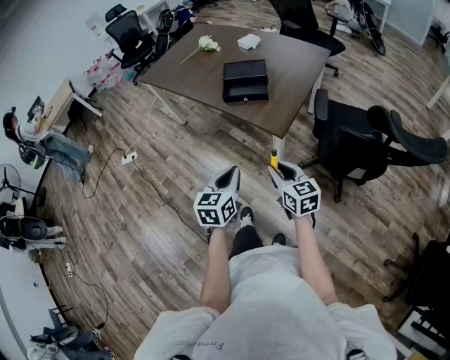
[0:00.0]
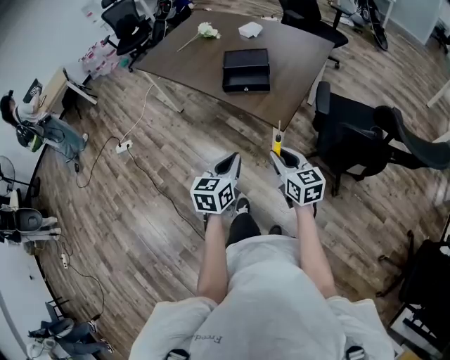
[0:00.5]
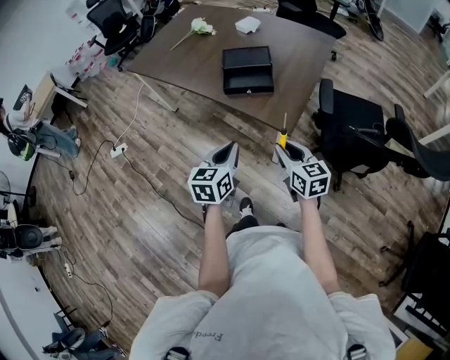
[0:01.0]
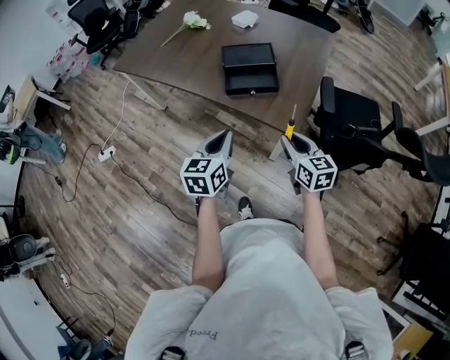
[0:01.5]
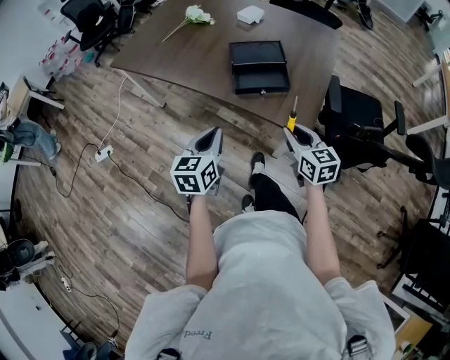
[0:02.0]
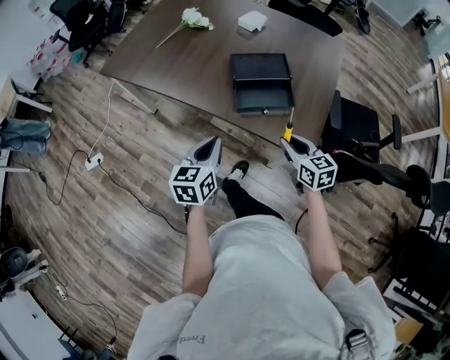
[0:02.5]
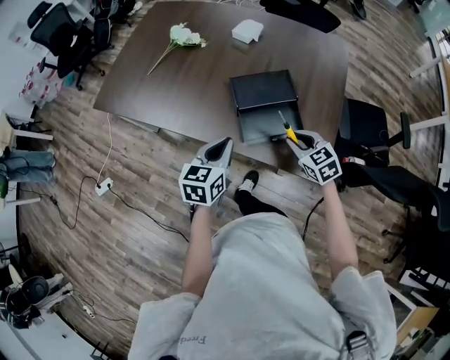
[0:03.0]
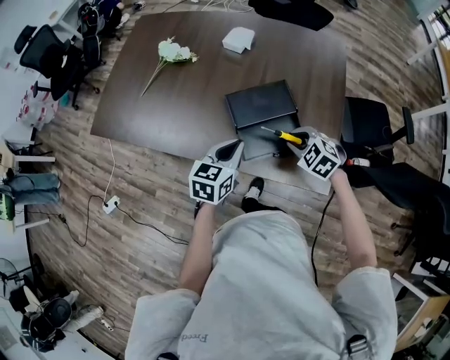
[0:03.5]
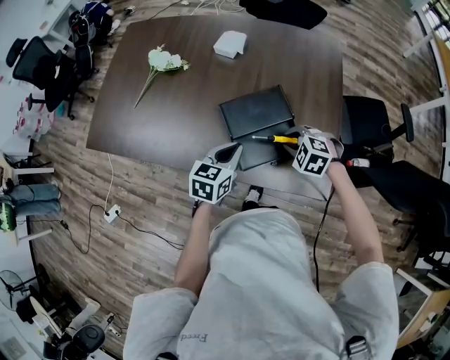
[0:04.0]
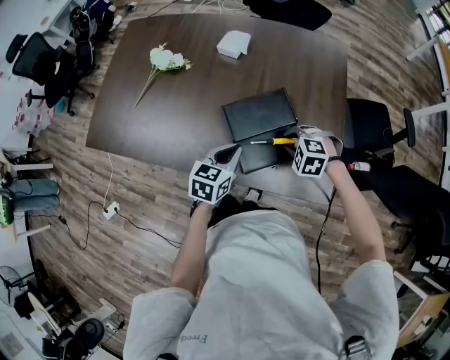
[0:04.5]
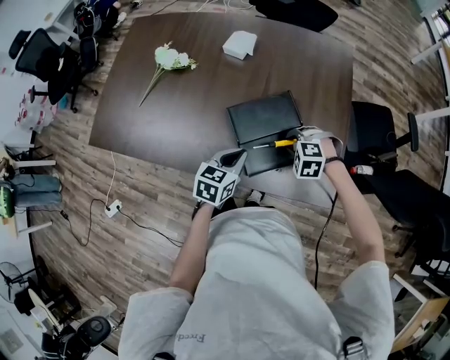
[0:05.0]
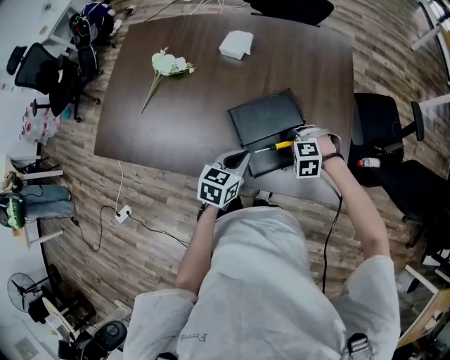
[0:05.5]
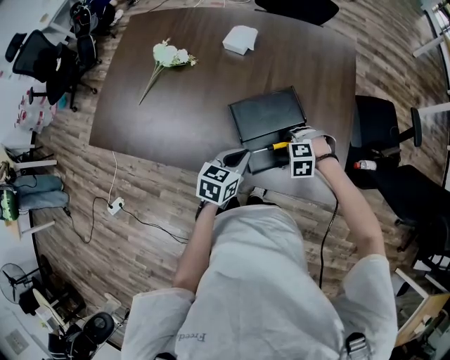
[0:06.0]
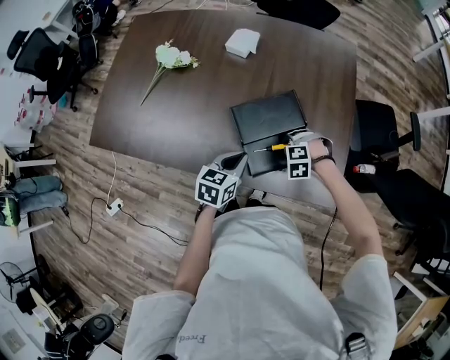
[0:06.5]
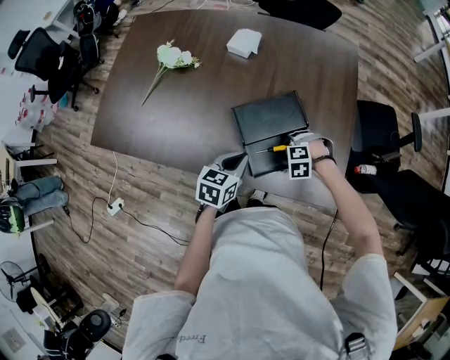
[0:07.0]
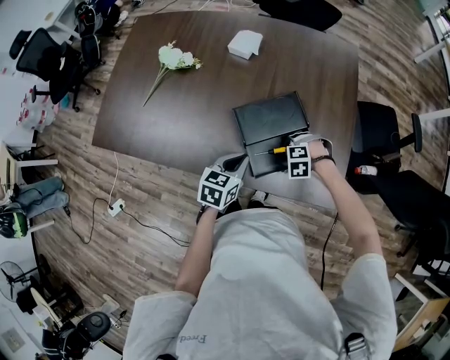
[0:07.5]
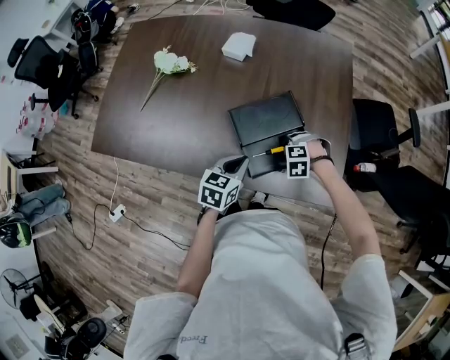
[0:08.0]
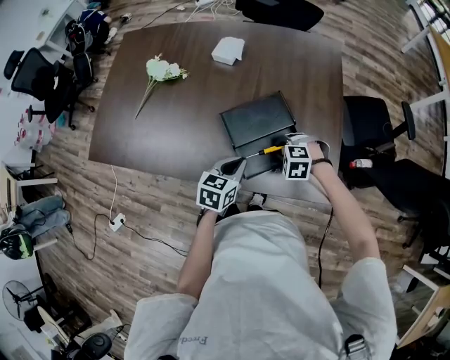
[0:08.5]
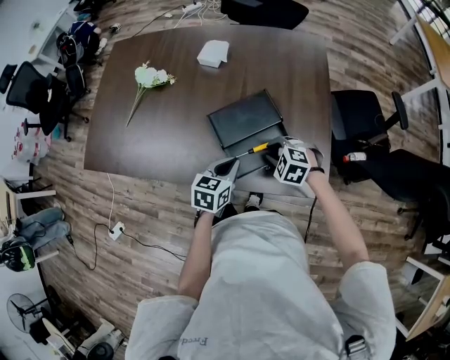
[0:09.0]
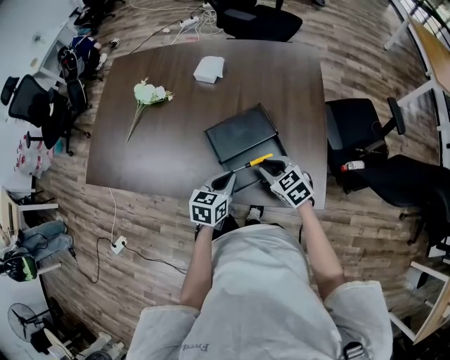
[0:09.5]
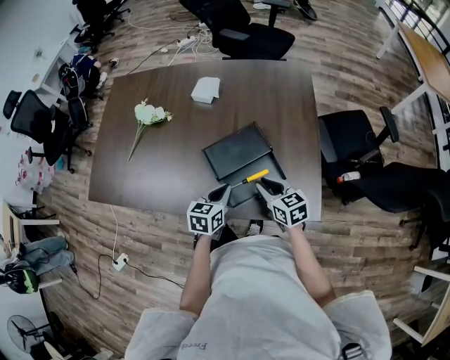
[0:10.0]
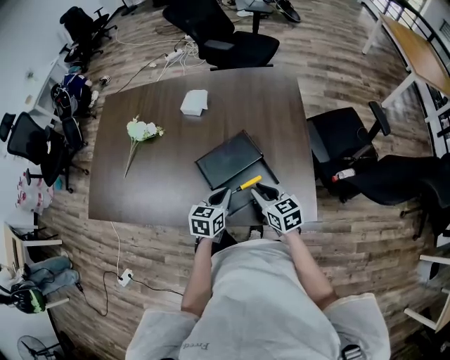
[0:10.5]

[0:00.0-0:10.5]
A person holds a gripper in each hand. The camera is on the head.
0:00.0 to 0:02.0: The right gripper shifts approximately 20 cm forward, while the left gripper heads forward and to the left, covering some 30 cm.
0:02.0 to 0:04.0: The right gripper heads forward and downward, covering about 30 cm, and points its fingers roughly 40 degrees further downward. Meanwhile the left gripper moves forward, roughly 30 cm, and rotates some 30 degrees.
0:04.0 to 0:06.5: The right gripper goes approximately 10 cm downward, and rotates about 30 degrees.
0:06.5 to 0:08.5: There are only small adjustments of the grippers.
0:08.5 to 0:10.5: The right gripper is displaced upward by some 10 cm, and rolls clockwise, seen from behind, by about 70 degrees.

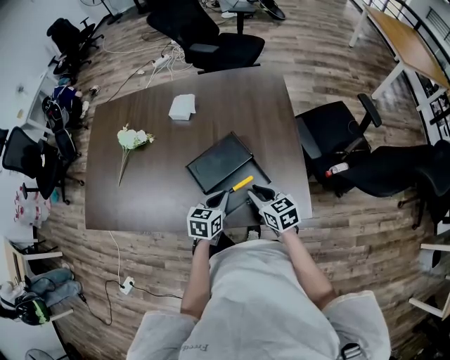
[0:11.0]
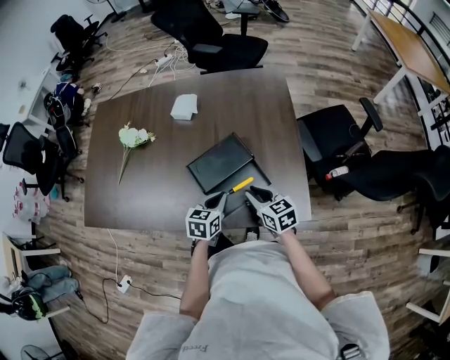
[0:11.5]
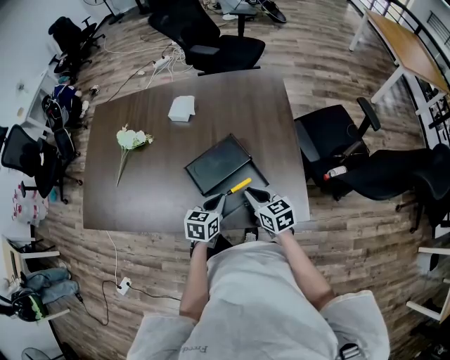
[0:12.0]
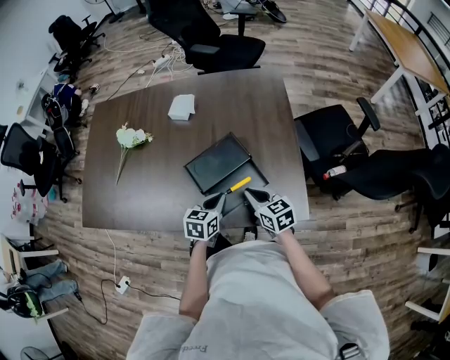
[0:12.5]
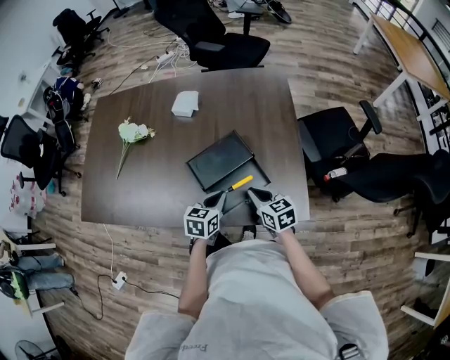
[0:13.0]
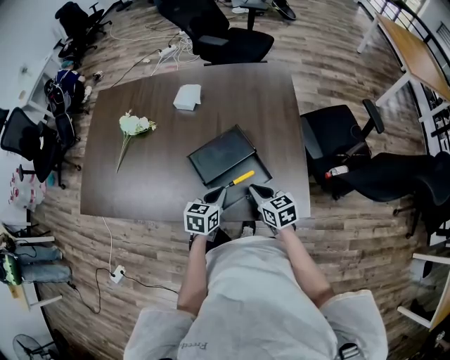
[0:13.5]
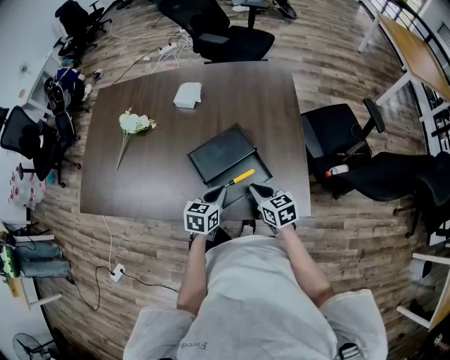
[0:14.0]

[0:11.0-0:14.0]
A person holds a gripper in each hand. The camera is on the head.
0:11.0 to 0:12.5: Both grippers stay about where they are.
0:12.5 to 0:14.0: The grippers stay close to where they were, moving slightly.

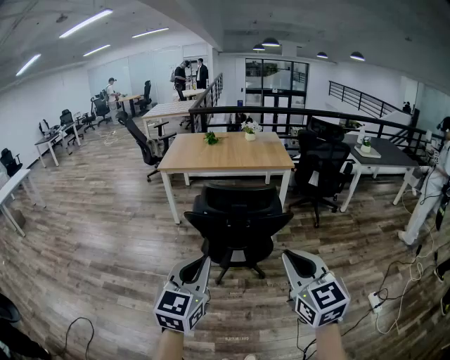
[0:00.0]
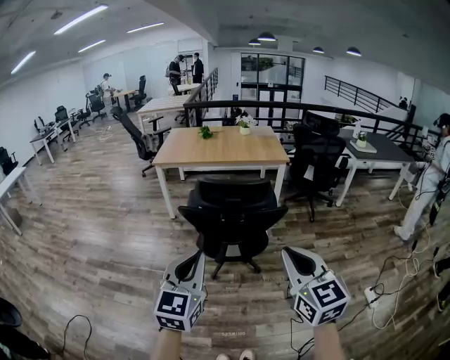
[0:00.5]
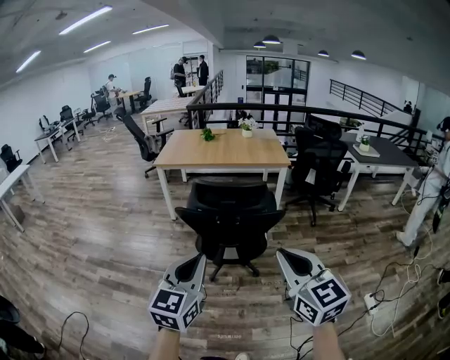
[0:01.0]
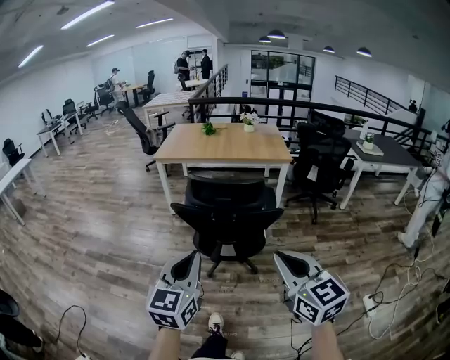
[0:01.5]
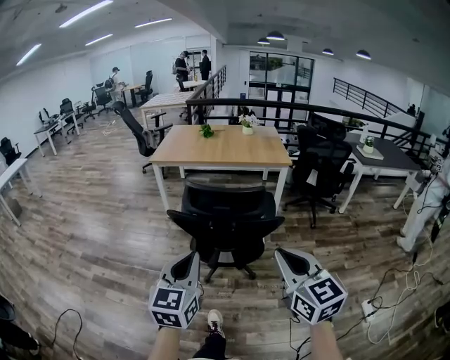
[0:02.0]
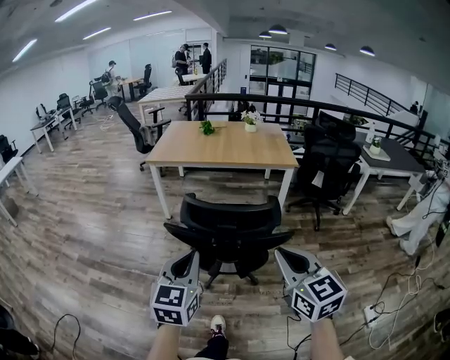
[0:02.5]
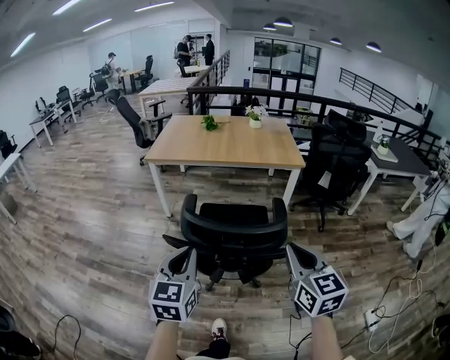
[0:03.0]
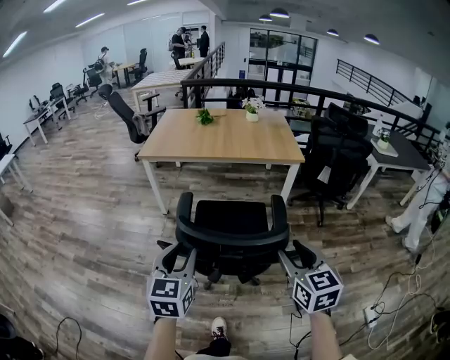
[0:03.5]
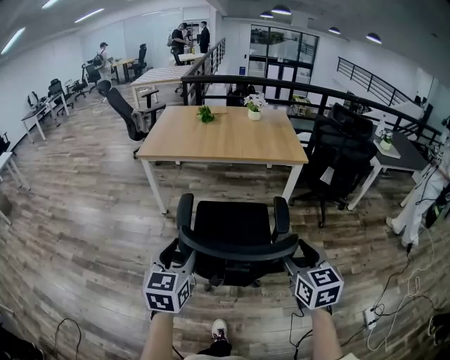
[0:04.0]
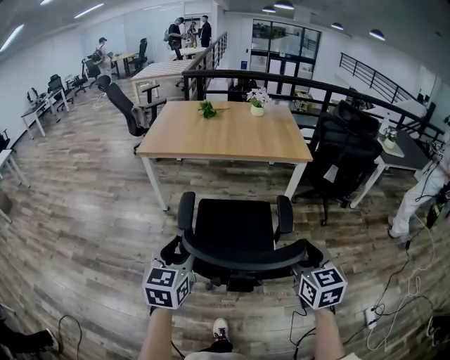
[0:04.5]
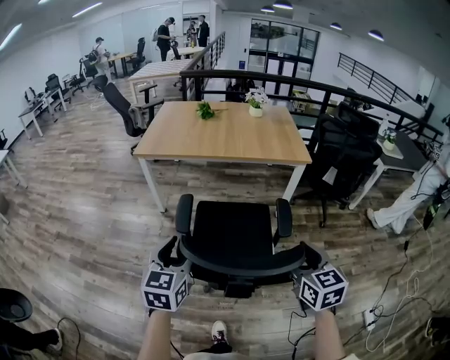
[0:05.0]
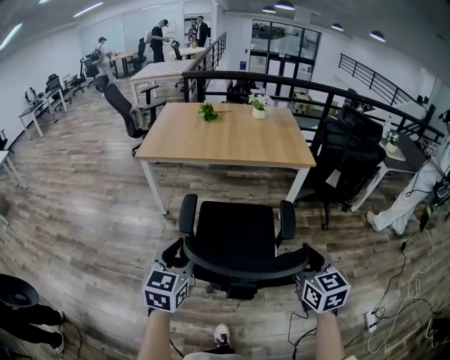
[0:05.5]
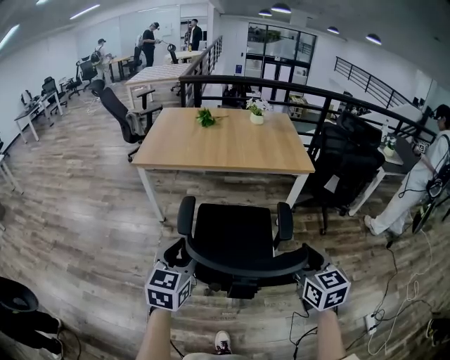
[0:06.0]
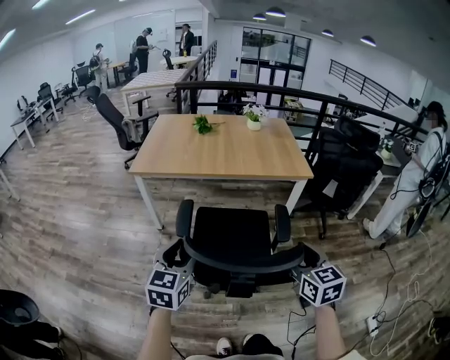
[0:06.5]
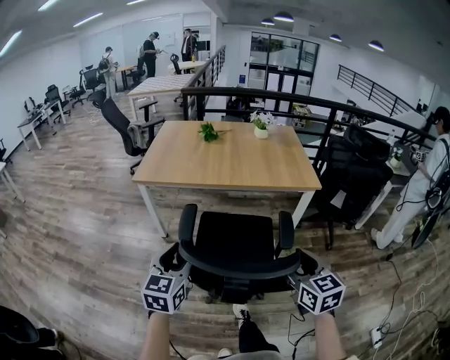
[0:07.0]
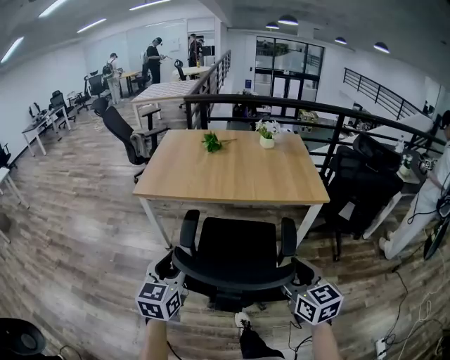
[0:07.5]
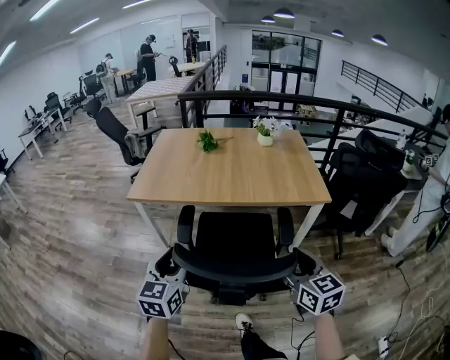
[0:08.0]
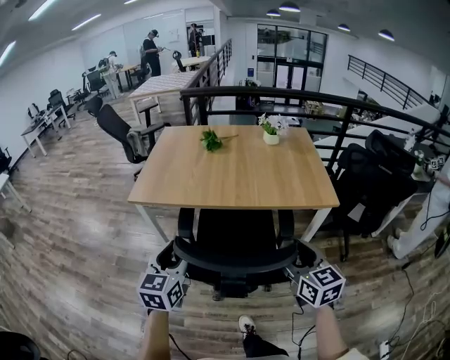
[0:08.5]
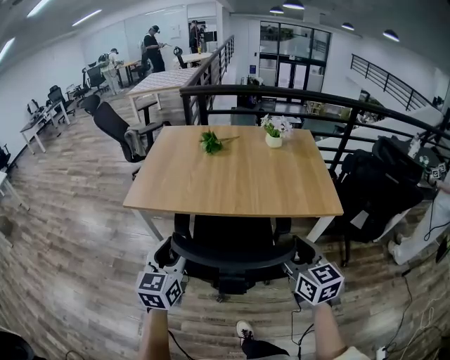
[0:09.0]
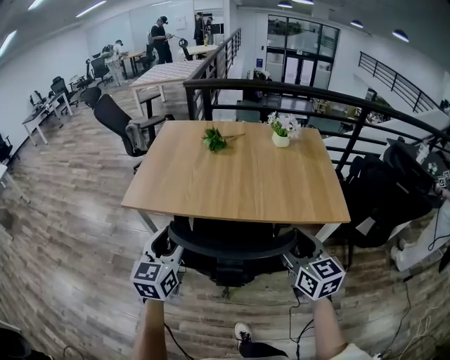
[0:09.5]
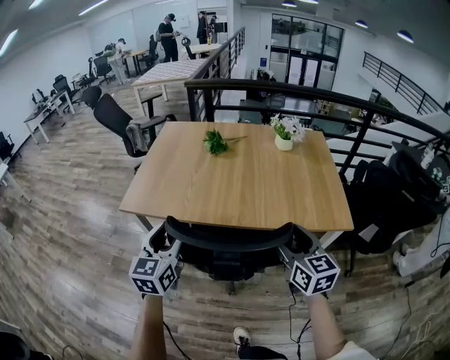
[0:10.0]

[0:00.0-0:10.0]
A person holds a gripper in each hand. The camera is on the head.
0:00.0 to 0:02.0: Both grippers move forward, about 5 cm.
0:02.0 to 0:04.0: The two grippers go approximately 30 cm forward. The left gripper opens its fingers. Meanwhile the right gripper opens up.
0:04.0 to 0:06.0: Both grippers travel together forward, about 10 cm.
0:06.0 to 0:08.0: The two grippers go some 20 cm forward.
0:08.0 to 0:10.0: Both grippers travel together forward, approximately 25 cm.

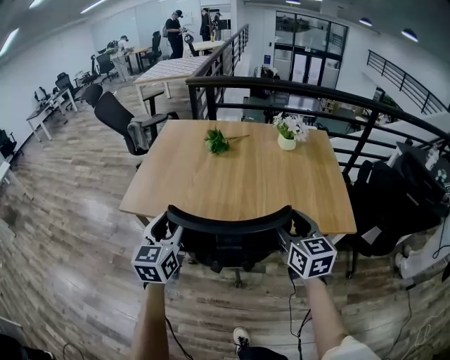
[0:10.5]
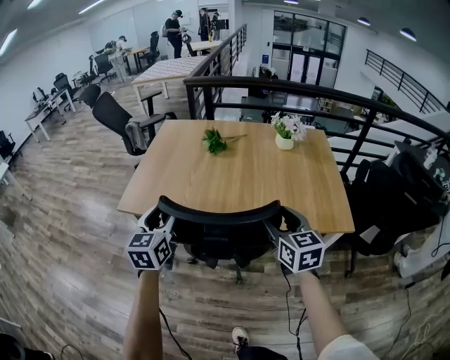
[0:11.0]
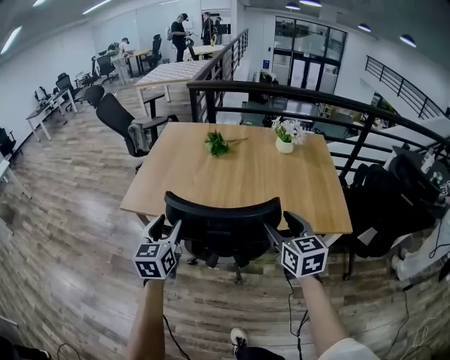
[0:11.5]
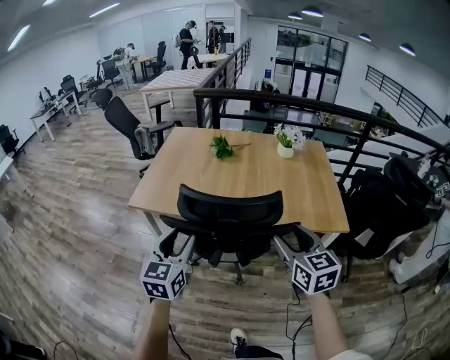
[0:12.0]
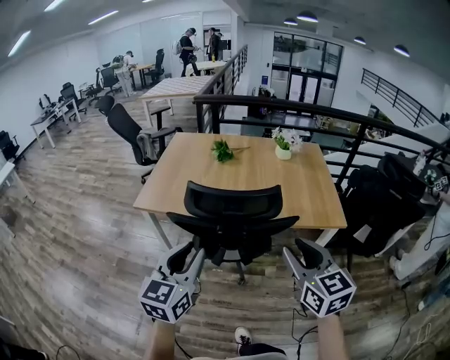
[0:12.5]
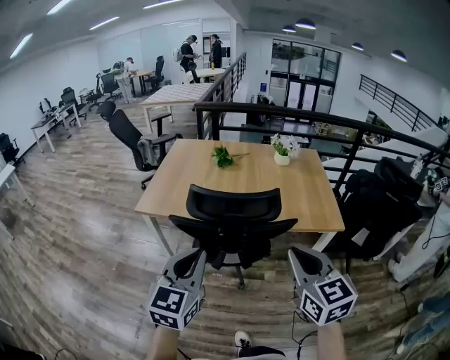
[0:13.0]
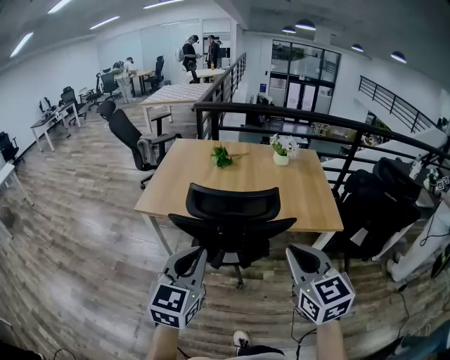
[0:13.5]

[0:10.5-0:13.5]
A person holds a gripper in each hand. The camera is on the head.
0:10.5 to 0:12.0: The two grippers go about 10 cm backward.
0:12.0 to 0:13.5: Both grippers move backward and upward, approximately 15 cm. The right gripper closes. The left gripper closes up.
